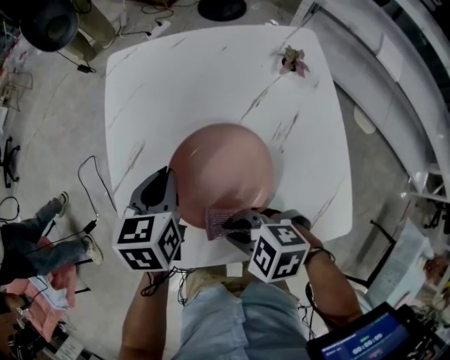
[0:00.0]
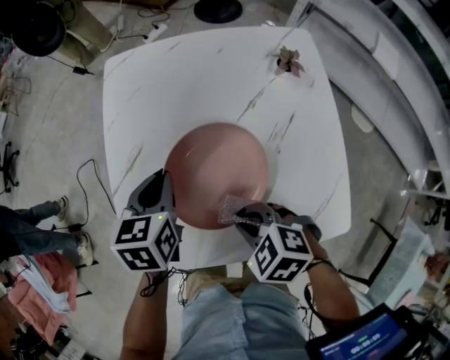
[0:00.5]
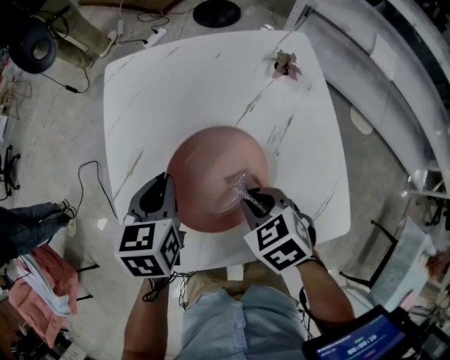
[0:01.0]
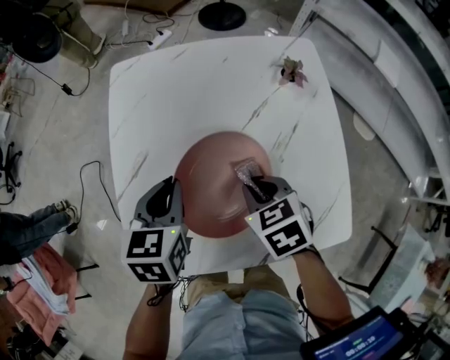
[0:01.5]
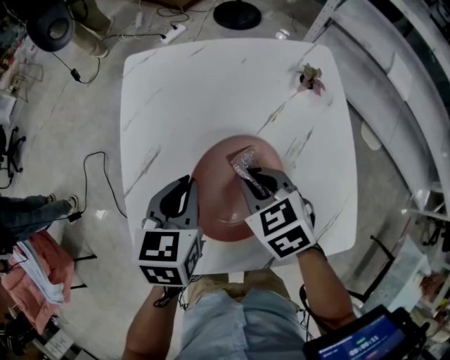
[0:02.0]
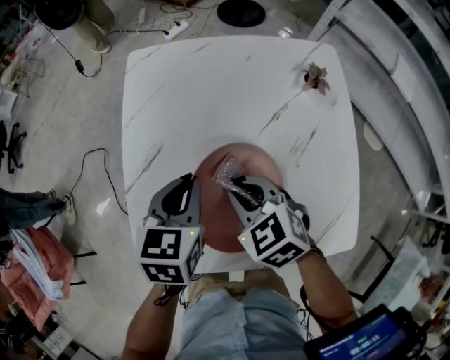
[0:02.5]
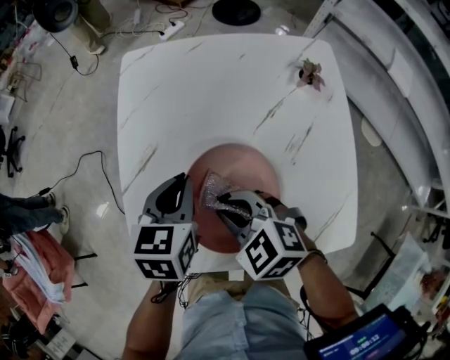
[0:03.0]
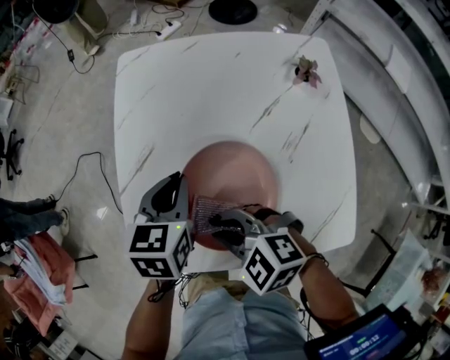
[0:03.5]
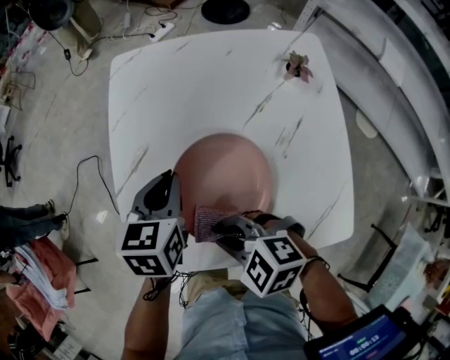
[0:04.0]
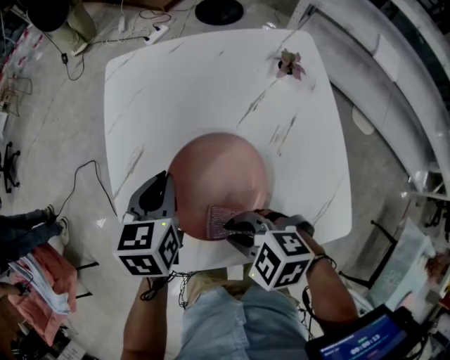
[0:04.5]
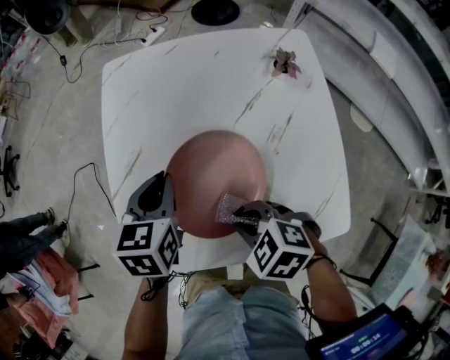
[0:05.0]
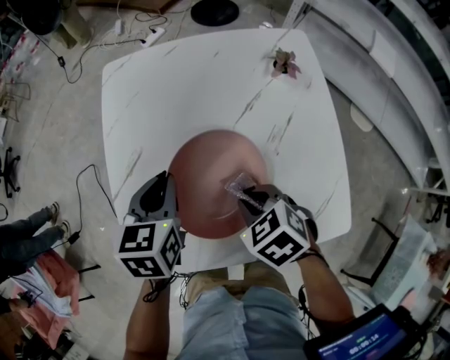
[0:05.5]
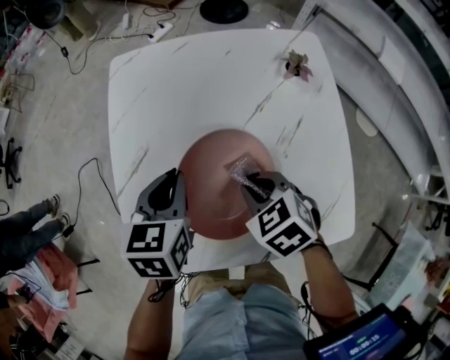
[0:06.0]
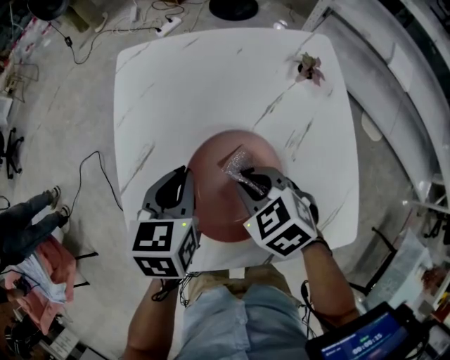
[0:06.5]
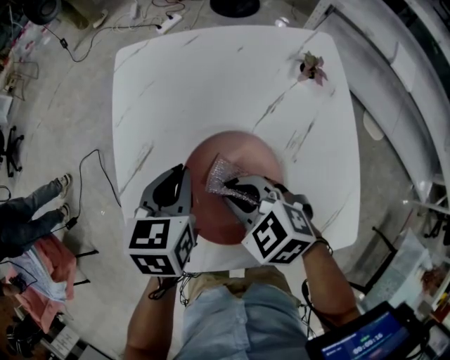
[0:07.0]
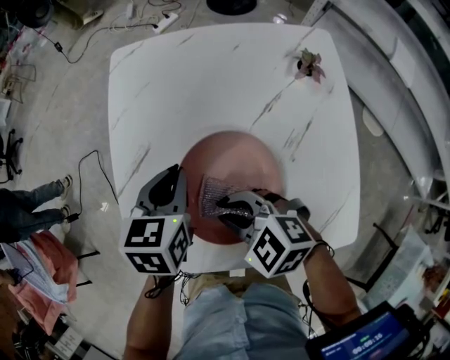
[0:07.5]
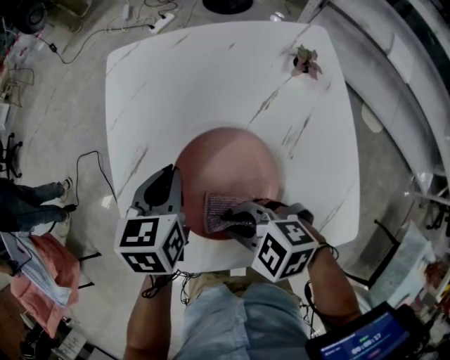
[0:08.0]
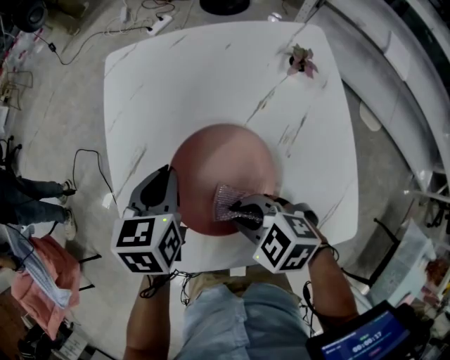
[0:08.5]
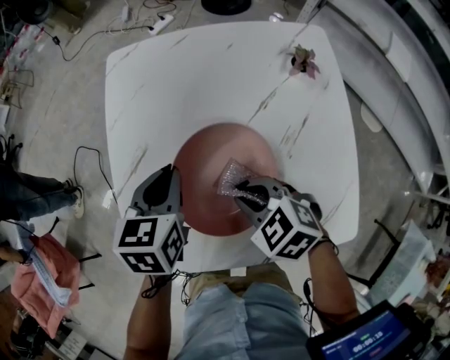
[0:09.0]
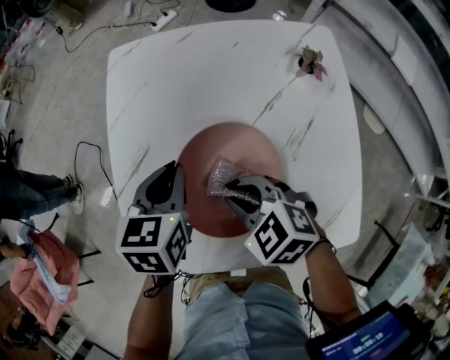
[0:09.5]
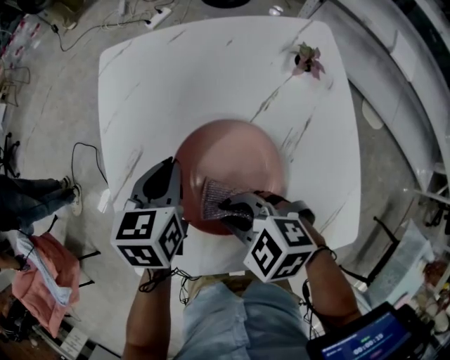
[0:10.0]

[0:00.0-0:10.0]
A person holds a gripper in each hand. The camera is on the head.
0:00.0 to 0:02.0: The right gripper changes place by roughly 15 cm, and changes its angle by approximately 40 degrees.
0:02.0 to 0:04.0: The right gripper moves to the left and backward, roughly 15 cm, and changes its angle by some 40 degrees.
0:04.0 to 0:06.0: The right gripper moves to the right and forward, some 15 cm, and swivels roughly 40 degrees.
0:06.0 to 0:08.0: The right gripper goes about 10 cm to the left, and rotates some 40 degrees.

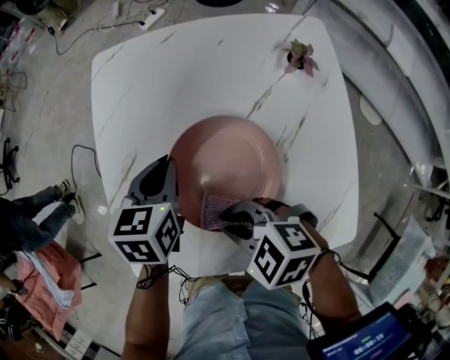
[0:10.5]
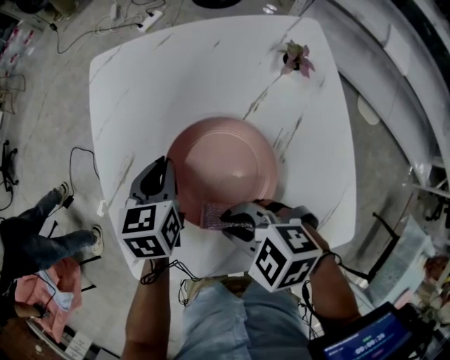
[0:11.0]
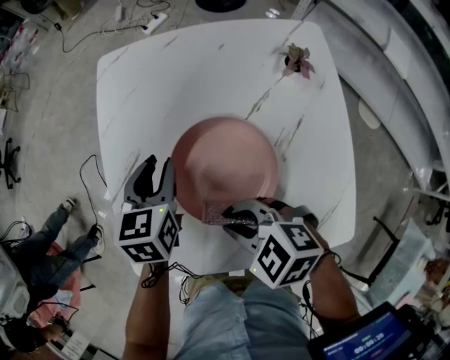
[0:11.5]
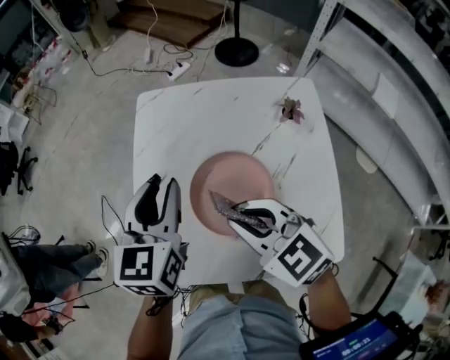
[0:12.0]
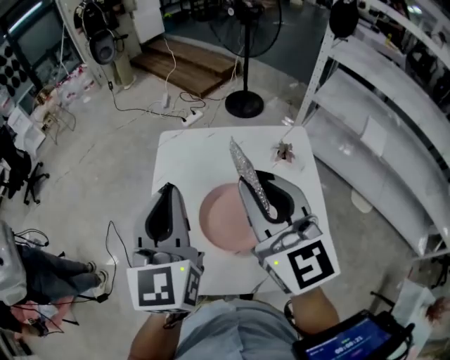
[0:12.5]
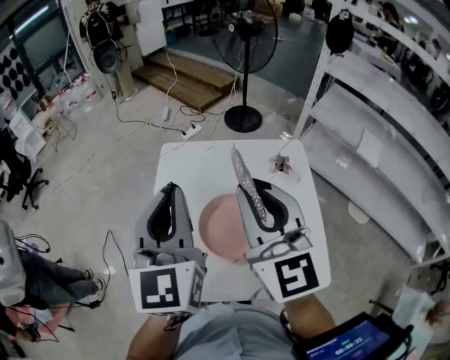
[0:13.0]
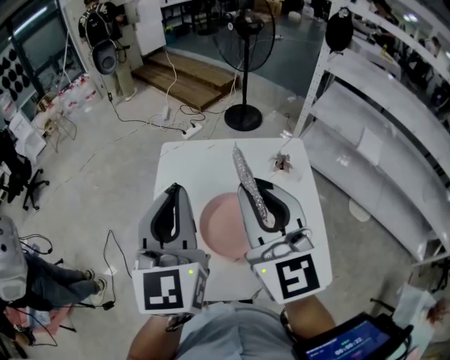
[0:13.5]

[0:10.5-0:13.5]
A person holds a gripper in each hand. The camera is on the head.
0:10.5 to 0:12.0: The two grippers go roughly 15 cm upward. The left gripper turns by approximately 30 degrees, and opens its fingers. Meanwhile the right gripper changes its angle by some 30 degrees.
0:12.0 to 0:13.5: Both grippers move upward, about 20 cm. The left gripper turns by about 20 degrees, and closes up; the right gripper points its fingers about 40 degrees further upward.

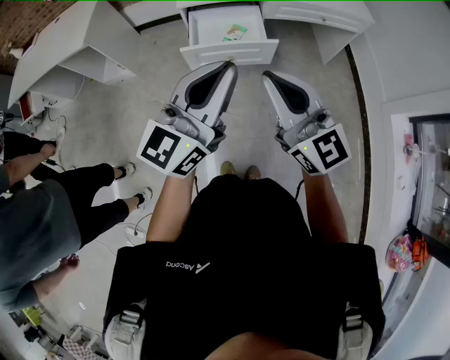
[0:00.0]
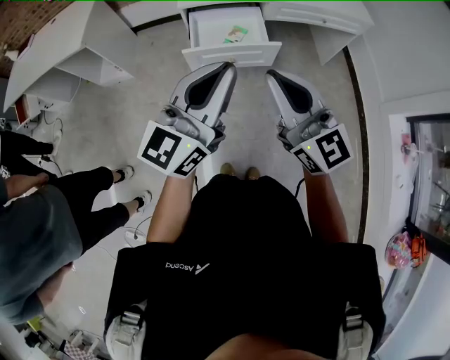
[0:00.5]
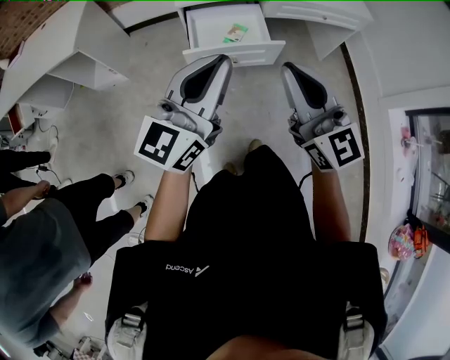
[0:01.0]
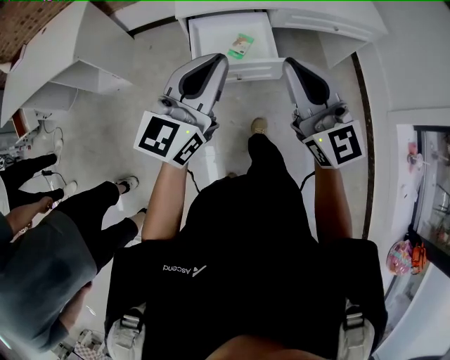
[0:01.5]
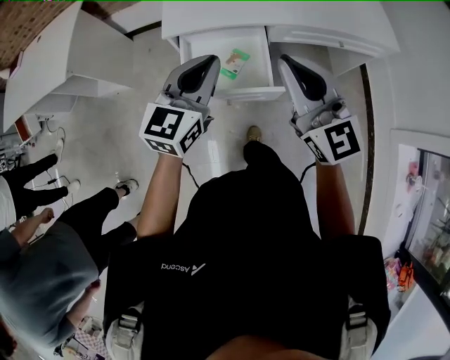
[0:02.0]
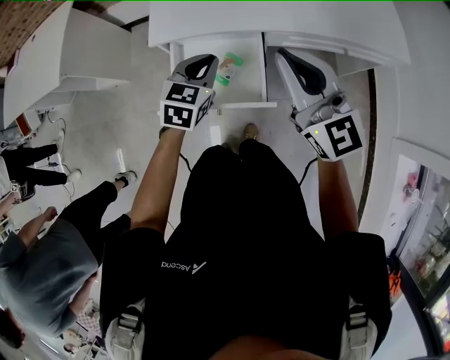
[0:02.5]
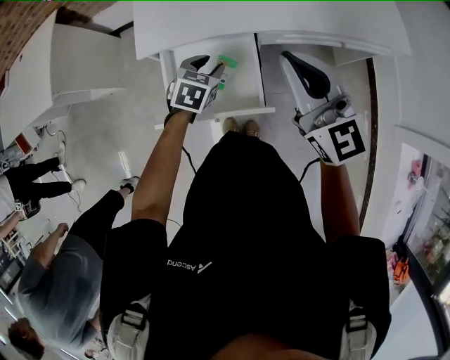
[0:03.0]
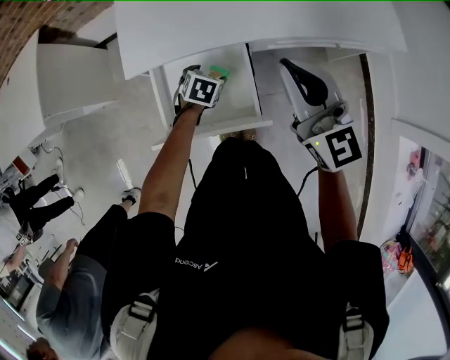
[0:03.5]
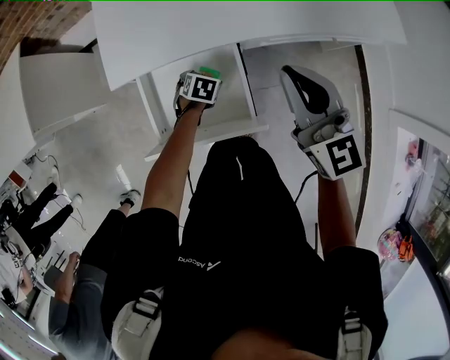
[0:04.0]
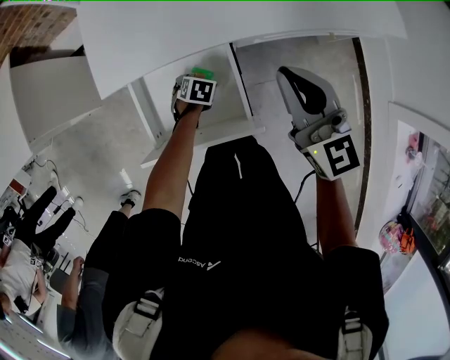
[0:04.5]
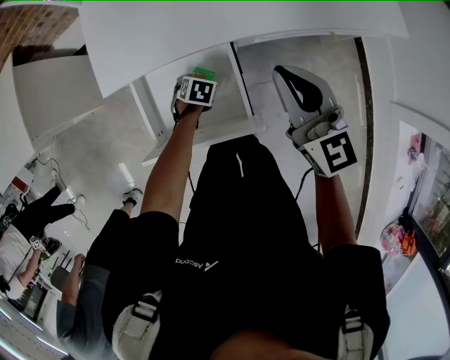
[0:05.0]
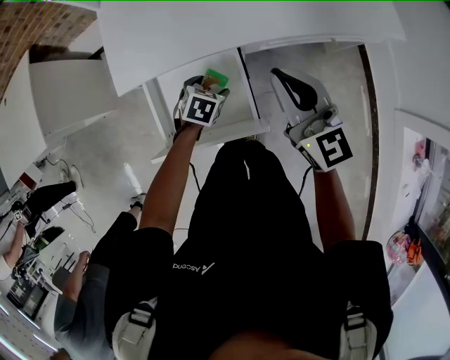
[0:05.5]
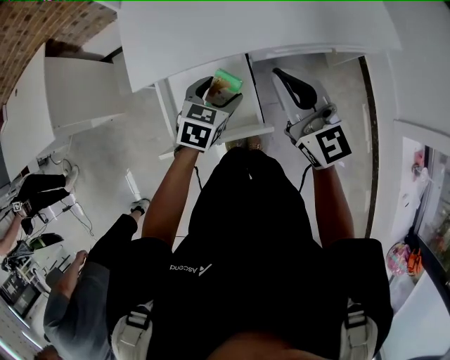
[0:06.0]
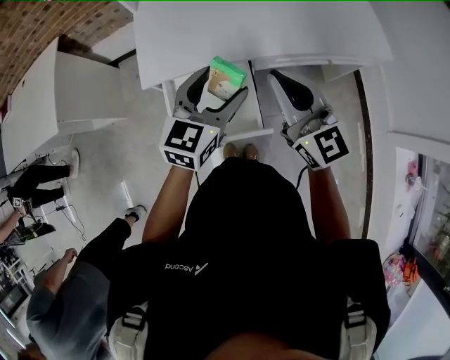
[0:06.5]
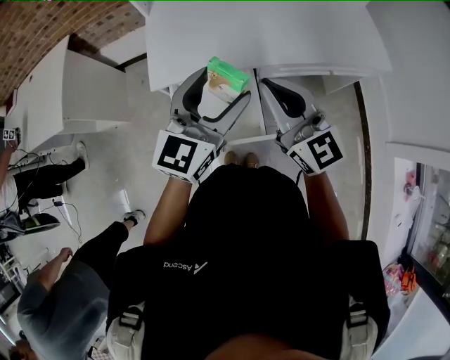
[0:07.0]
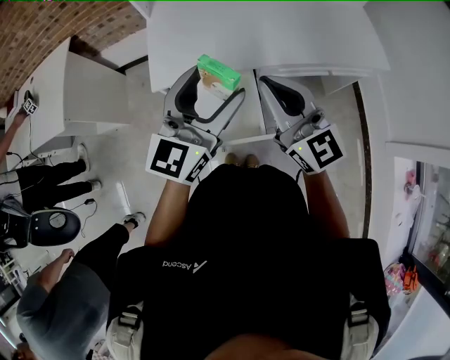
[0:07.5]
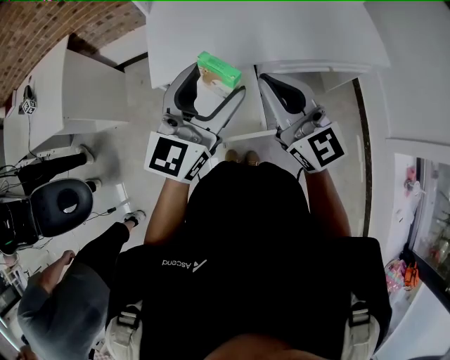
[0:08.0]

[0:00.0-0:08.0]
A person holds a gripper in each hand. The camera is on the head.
0:00.0 to 0:02.0: The grippers both shift forward by roughly 35 cm. The left gripper swivels some 20 degrees.
0:02.0 to 0:04.0: The right gripper is displaced forward, downward and to the right by roughly 25 cm; the left gripper moves downward and forward, approximately 50 cm, points its fingers about 60 degrees further downward, and opens its fingers.
0:04.0 to 0:06.0: The left gripper heads upward, covering about 25 cm, and swivels about 30 degrees.
0:06.0 to 0:08.0: The right gripper is displaced upward, to the left and backward by about 15 cm. The left gripper goes roughly 30 cm upward, and tilts its fingers approximately 50 degrees upward.

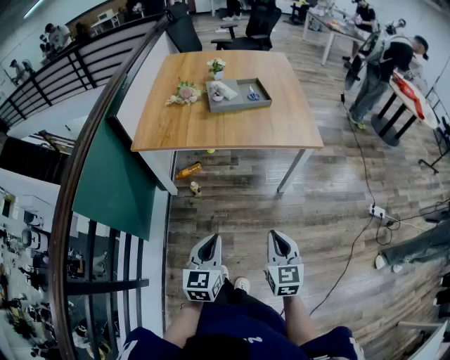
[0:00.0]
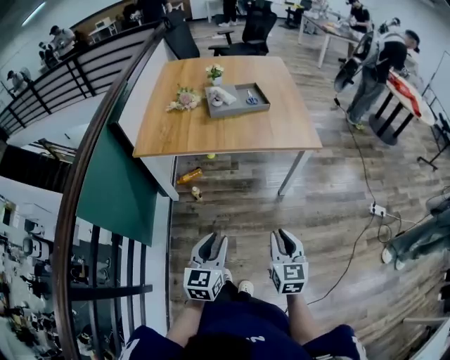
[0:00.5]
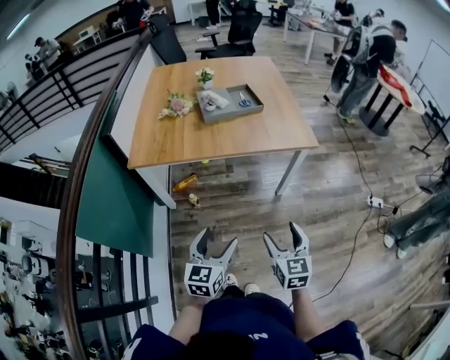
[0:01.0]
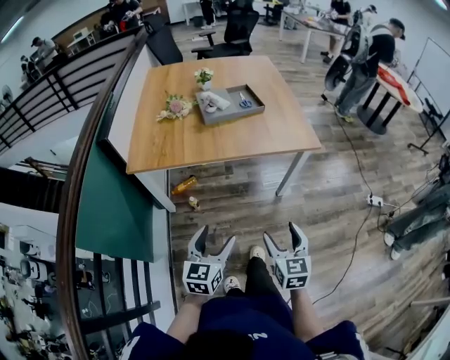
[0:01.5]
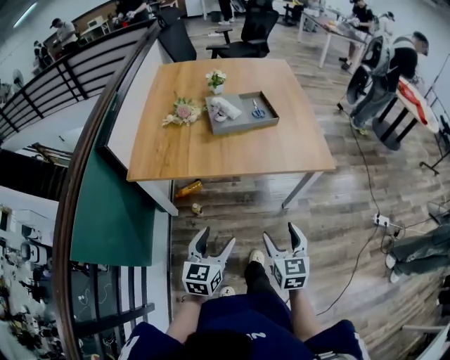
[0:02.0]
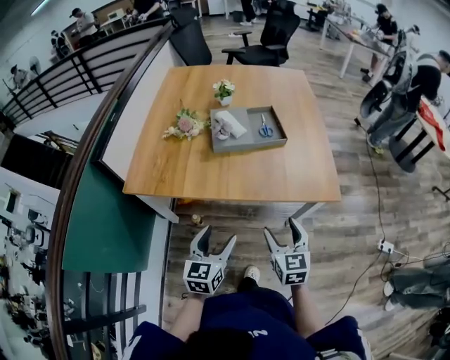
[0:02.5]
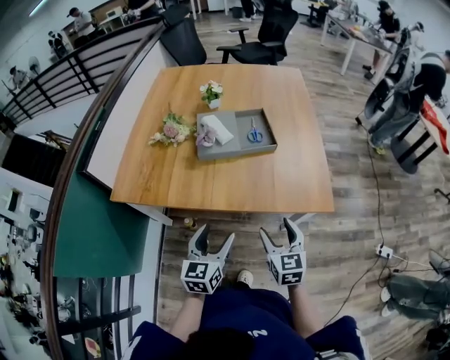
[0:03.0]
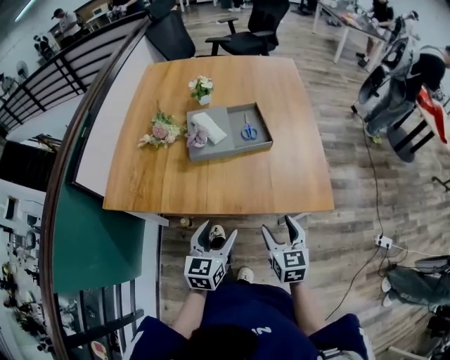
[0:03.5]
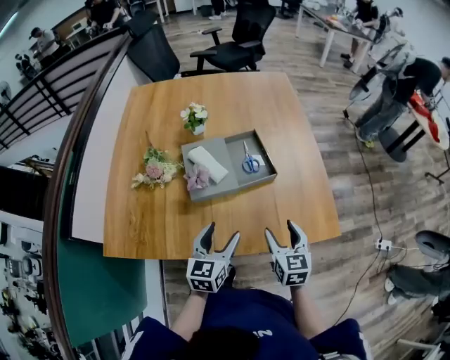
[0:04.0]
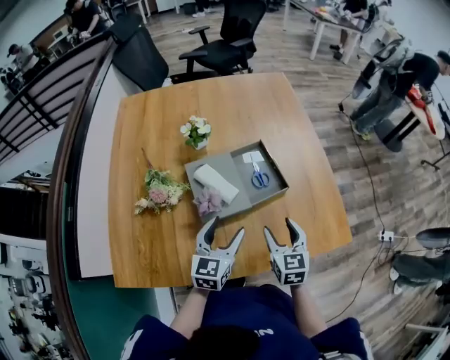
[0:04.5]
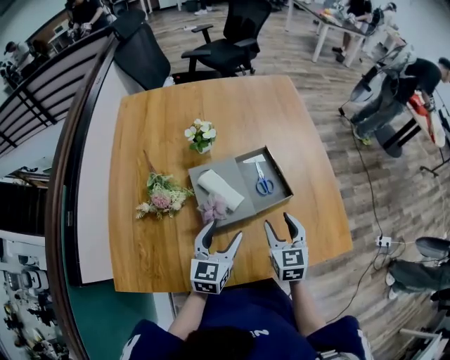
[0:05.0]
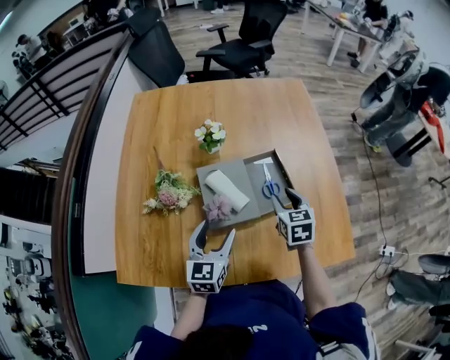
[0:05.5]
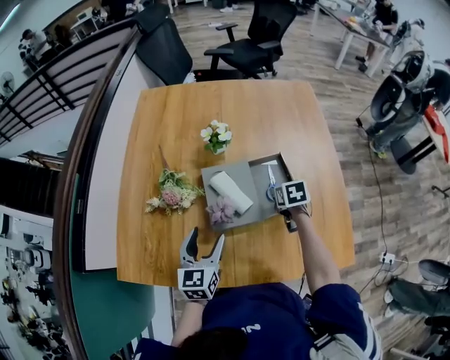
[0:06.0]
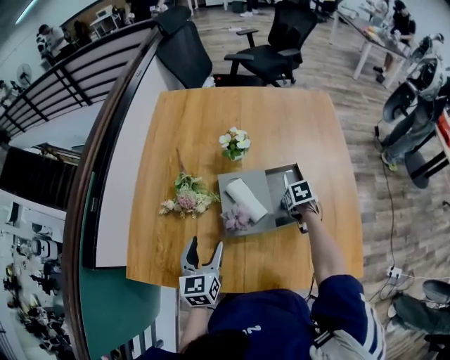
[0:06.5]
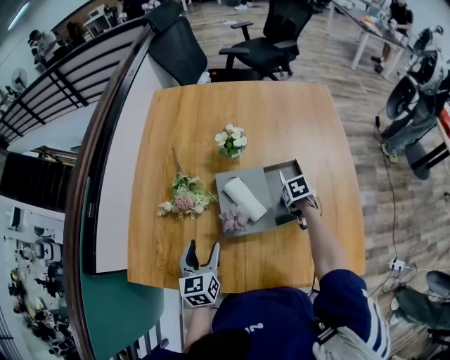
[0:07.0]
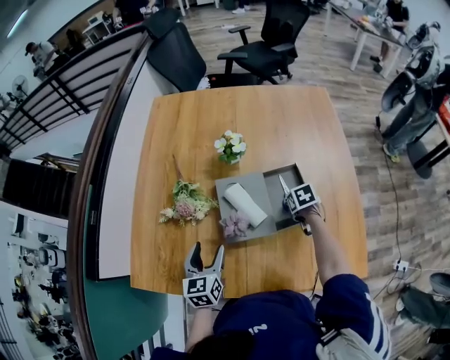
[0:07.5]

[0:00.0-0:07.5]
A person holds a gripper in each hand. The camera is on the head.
0:00.0 to 0:02.0: The grippers both shift forward by about 15 cm. The left gripper opens its fingers, while the right gripper opens up.
0:02.0 to 0:04.0: The grippers both shift forward by some 35 cm.
0:04.0 to 0:05.5: The right gripper shifts roughly 20 cm forward. The left gripper shifts some 15 cm forward and to the left.
0:05.5 to 0:07.5: The left gripper changes place by about 10 cm, while the right gripper heads downward, covering about 15 cm, and tips its fingers downward by about 30 degrees.
